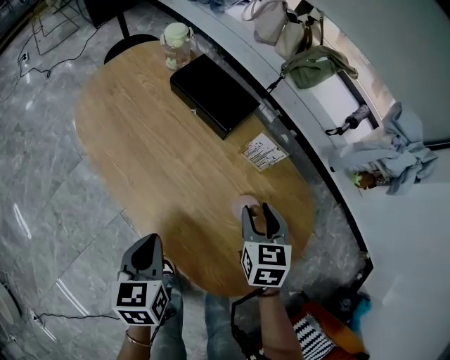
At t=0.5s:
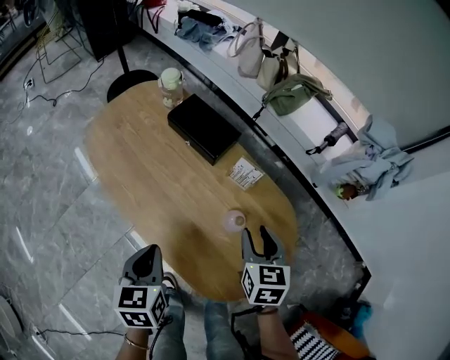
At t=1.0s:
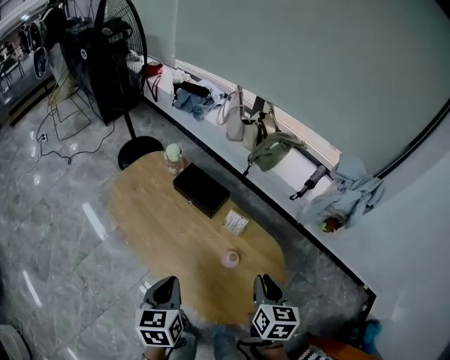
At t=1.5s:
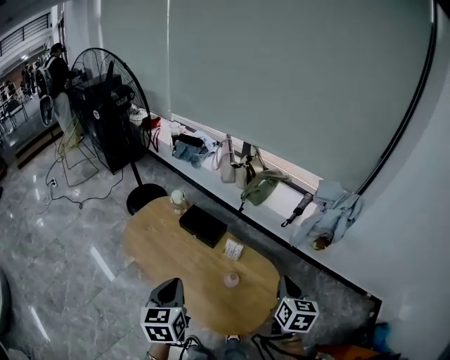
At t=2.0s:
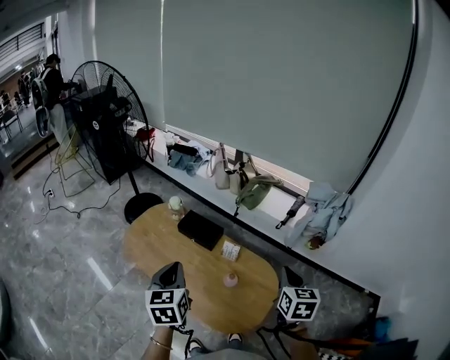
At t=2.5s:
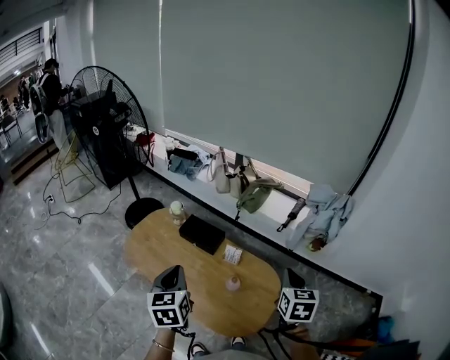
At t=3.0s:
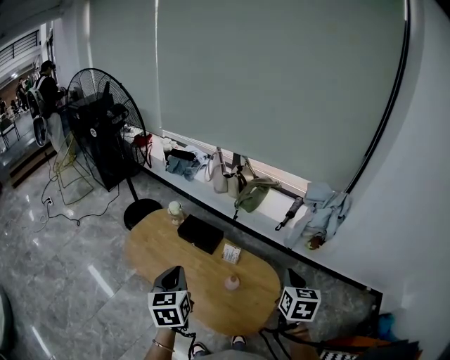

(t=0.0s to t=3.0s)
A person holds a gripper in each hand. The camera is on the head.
t=0.0s - t=1.5s: Both grippers move upward, some 35 cm. The right gripper changes its angle by some 30 degrees, and closes, while the left gripper changes its angle by approximately 20 degrees.
t=1.5s - t=3.0s: There are only small adjustments of the grippers.

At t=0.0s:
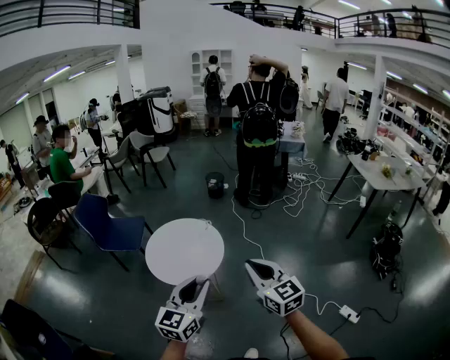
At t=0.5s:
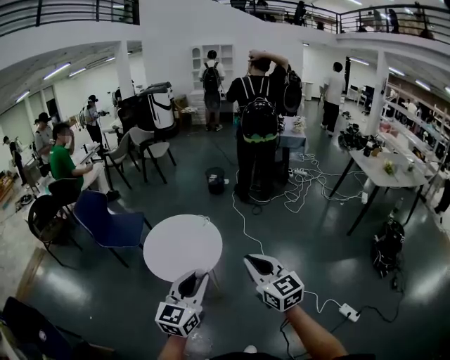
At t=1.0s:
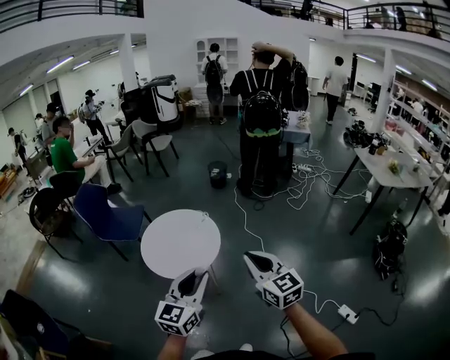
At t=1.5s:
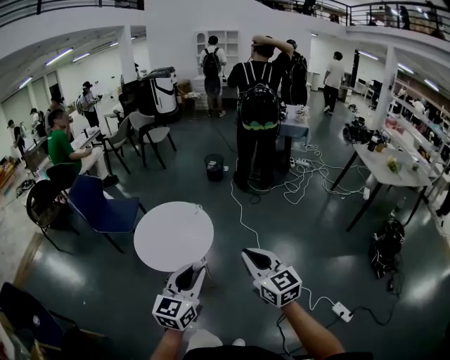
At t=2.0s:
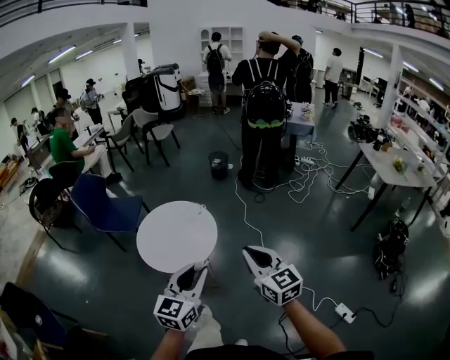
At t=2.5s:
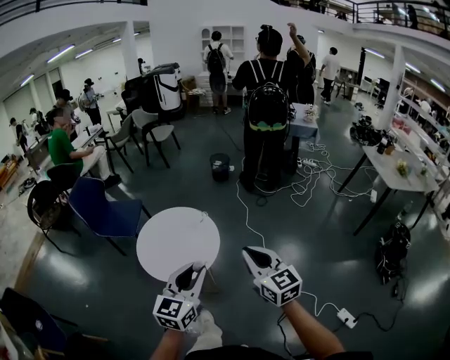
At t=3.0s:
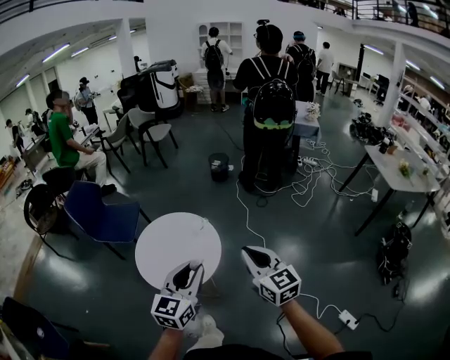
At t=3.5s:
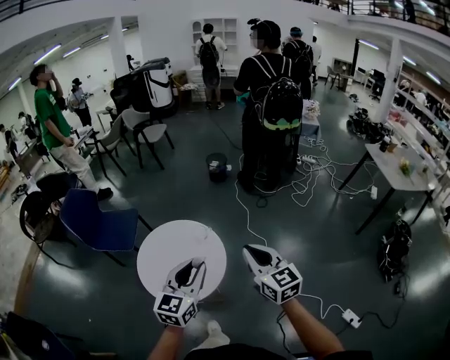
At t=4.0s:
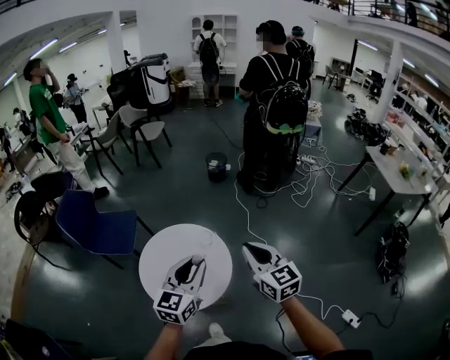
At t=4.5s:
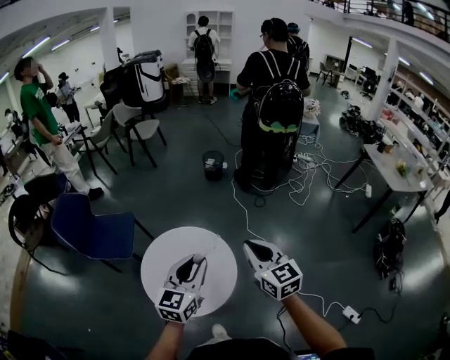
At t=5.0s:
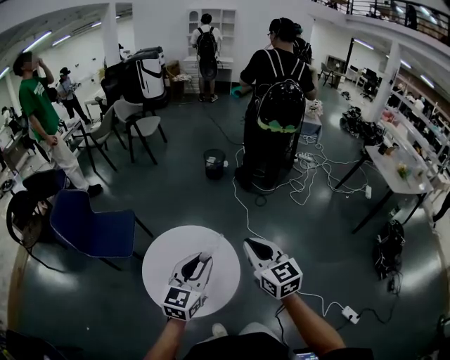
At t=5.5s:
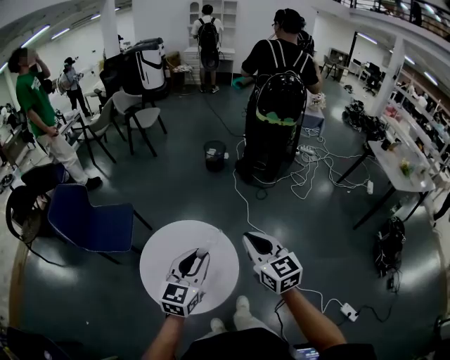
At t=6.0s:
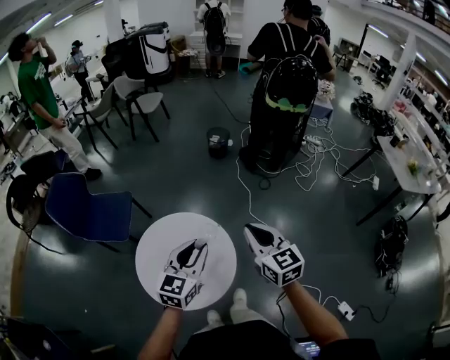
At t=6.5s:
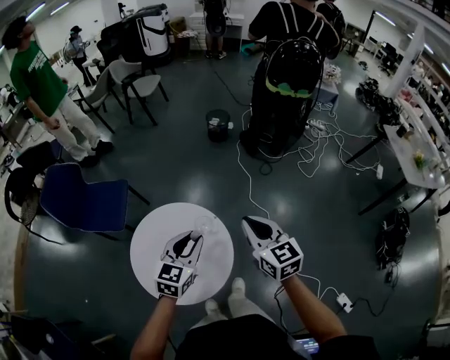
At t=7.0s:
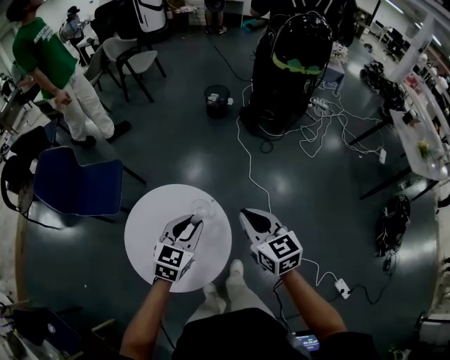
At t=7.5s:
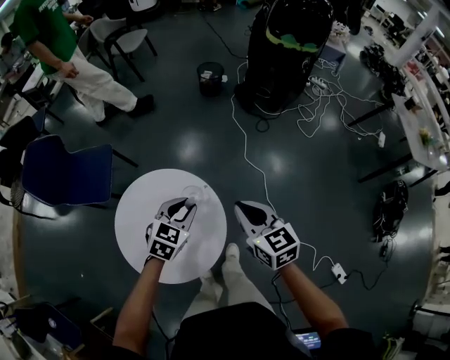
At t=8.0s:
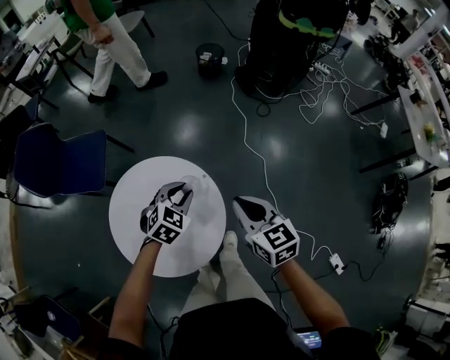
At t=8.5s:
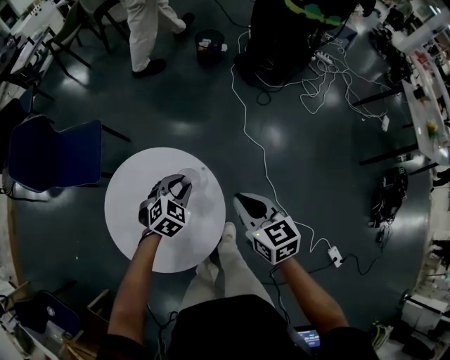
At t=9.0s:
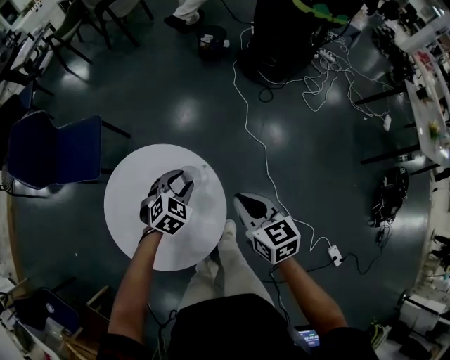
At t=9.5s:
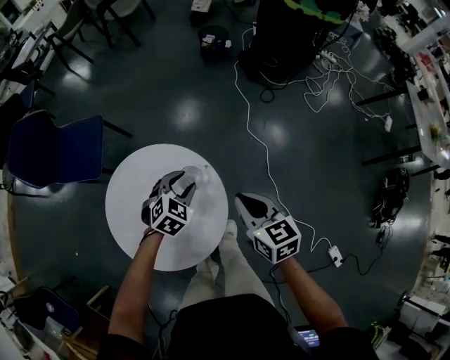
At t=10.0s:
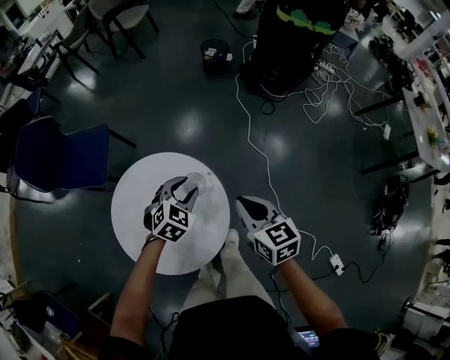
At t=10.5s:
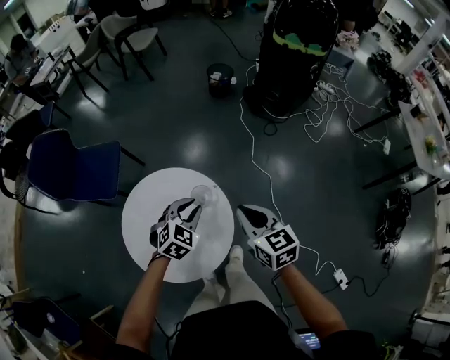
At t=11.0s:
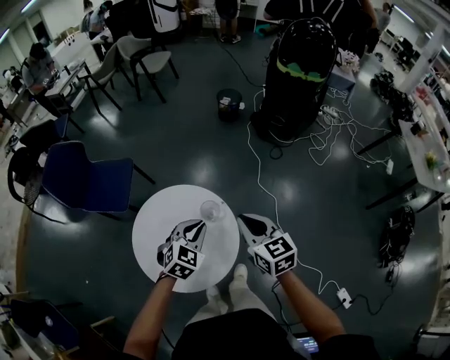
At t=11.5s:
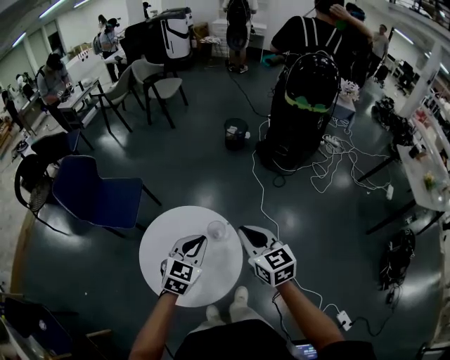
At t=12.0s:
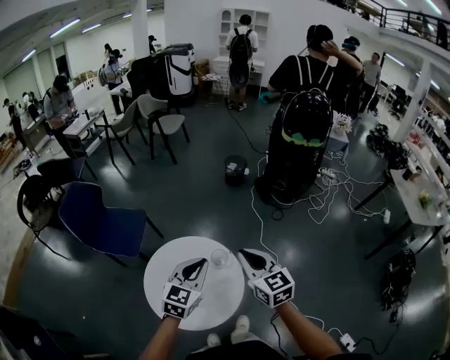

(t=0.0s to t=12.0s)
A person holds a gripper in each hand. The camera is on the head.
t=0.0s - t=2.0s: The grippers both shift to the right and forward by some 10 cm.
t=2.0s - t=4.0s: The two grippers go approximately 35 cm forward.
t=4.0s - t=6.0s: The left gripper shifts some 15 cm forward and downward; the right gripper shifts roughly 15 cm forward.
t=6.0s - t=8.0s: Both grippers travel together downward and forward, roughly 25 cm. The left gripper angles its fingers downward, by approximately 40 degrees.
t=8.0s - t=10.0s: The grippers make only small movements.
t=10.0s - t=12.0s: The left gripper travels upward and backward by about 30 cm, changes its angle by roughly 30 degrees, and closes its fingers; the right gripper moves upward and to the left, roughly 25 cm, and swivels some 20 degrees.

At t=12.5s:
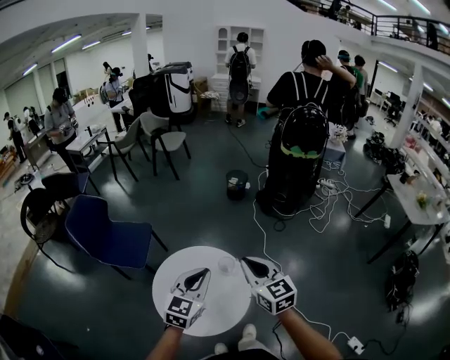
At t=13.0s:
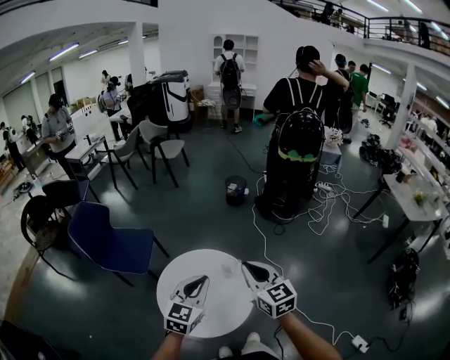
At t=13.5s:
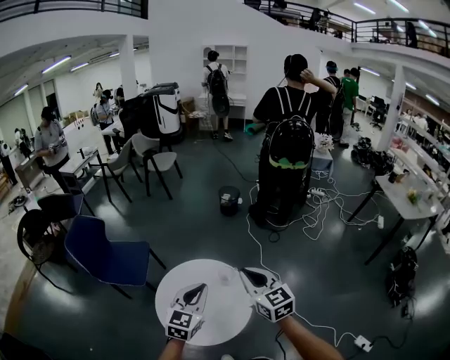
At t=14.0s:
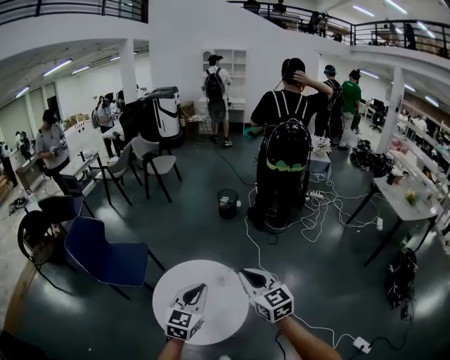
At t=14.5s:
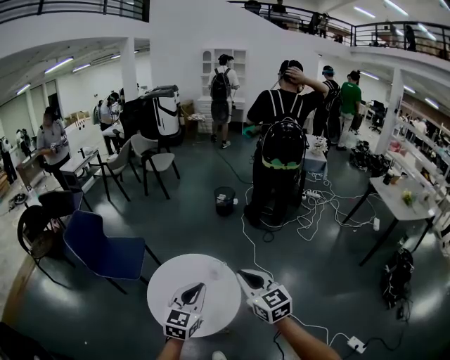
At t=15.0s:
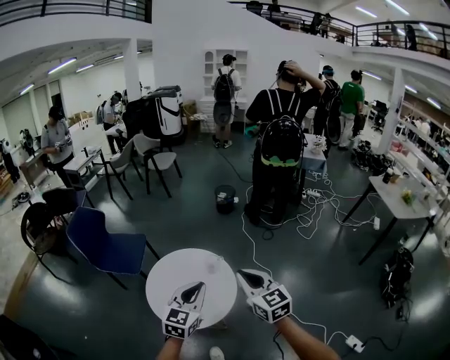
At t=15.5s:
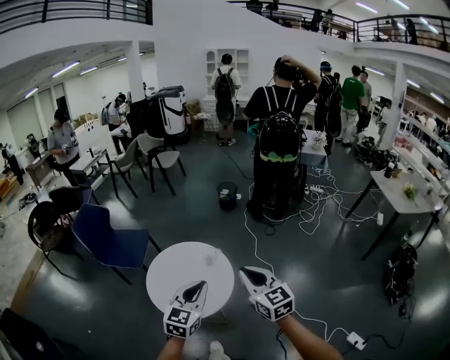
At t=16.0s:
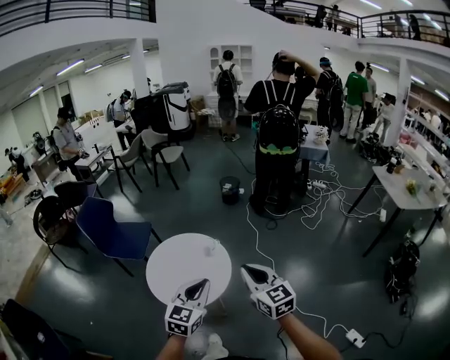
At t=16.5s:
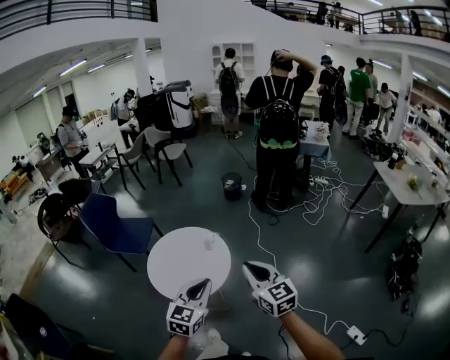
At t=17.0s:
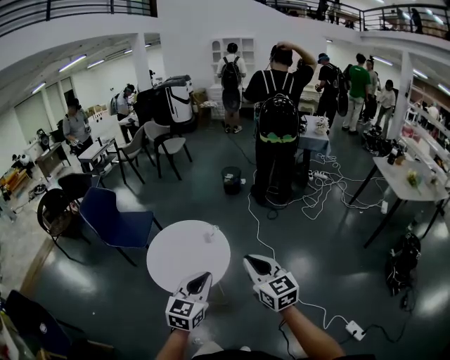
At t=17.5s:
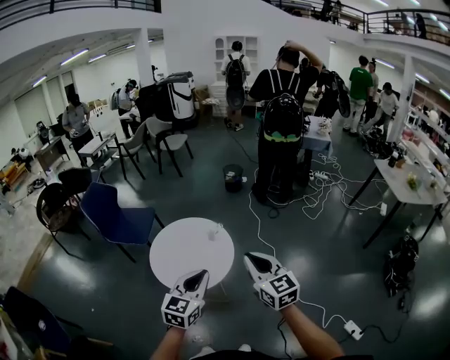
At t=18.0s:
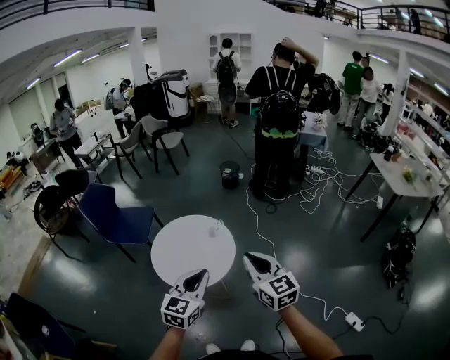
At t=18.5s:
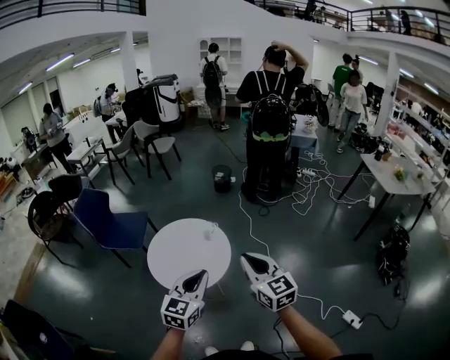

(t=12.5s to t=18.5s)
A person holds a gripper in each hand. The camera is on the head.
t=12.5s - t=14.5s: The grippers both shift backward by approximately 10 cm.
t=14.5s - t=16.5s: Both grippers travel together backward and to the right, approximately 25 cm.
t=16.5s - t=18.5s: Both grippers move to the left, roughly 5 cm.

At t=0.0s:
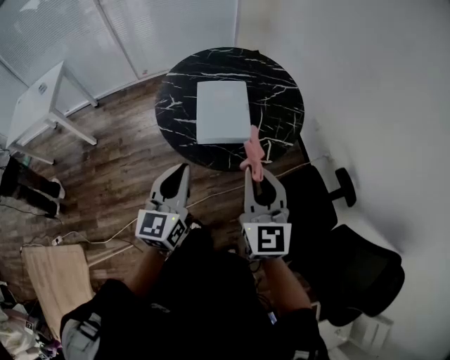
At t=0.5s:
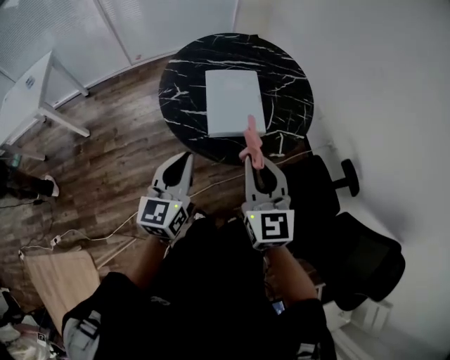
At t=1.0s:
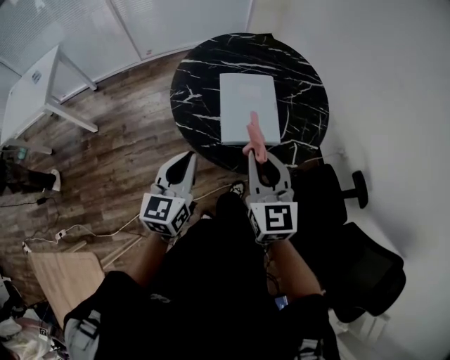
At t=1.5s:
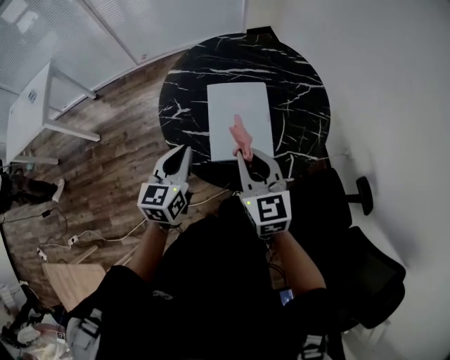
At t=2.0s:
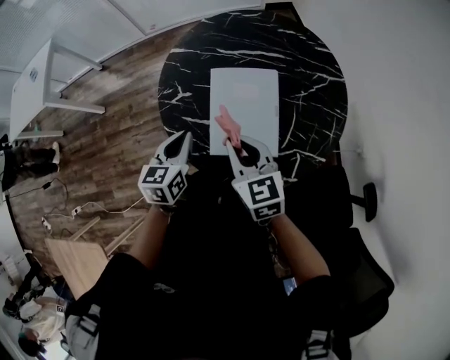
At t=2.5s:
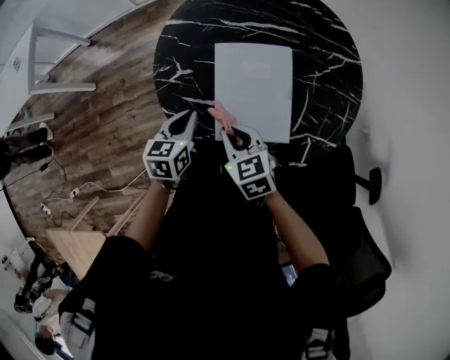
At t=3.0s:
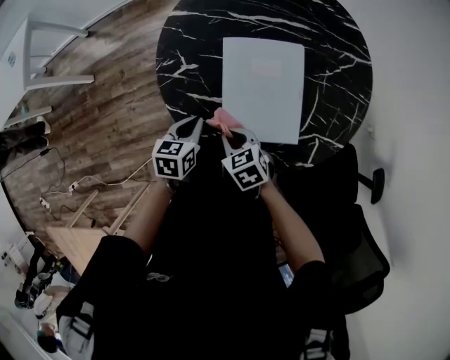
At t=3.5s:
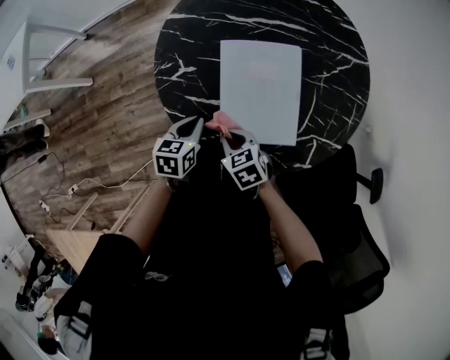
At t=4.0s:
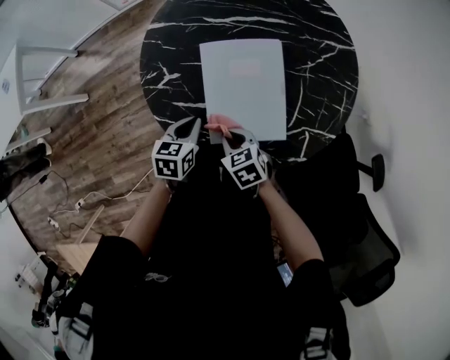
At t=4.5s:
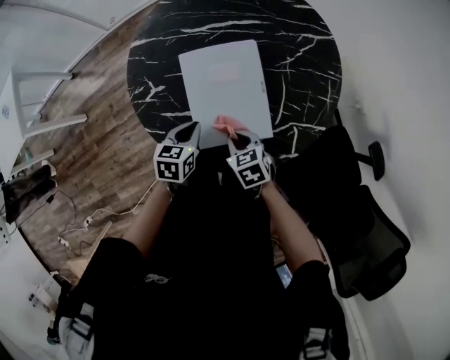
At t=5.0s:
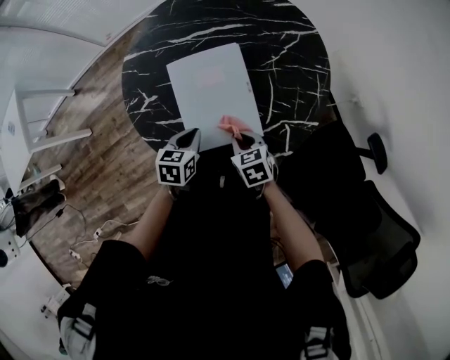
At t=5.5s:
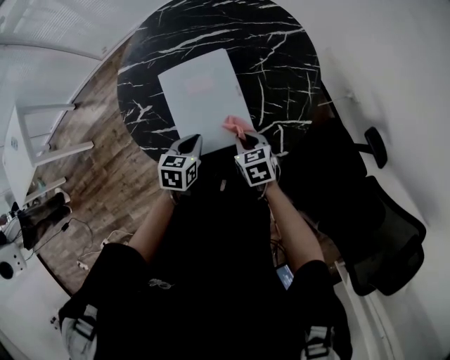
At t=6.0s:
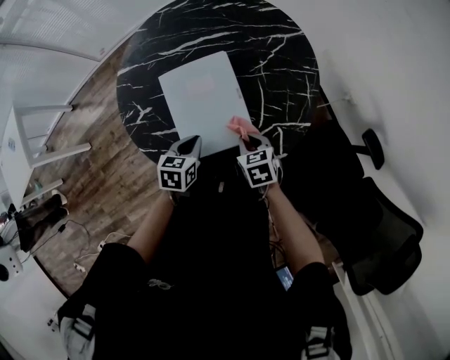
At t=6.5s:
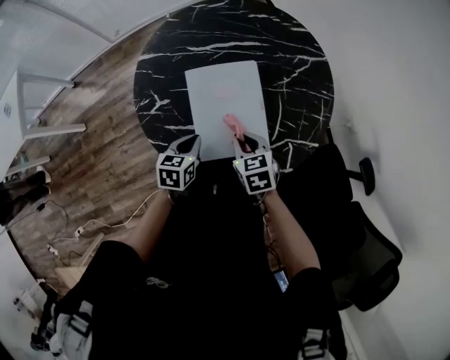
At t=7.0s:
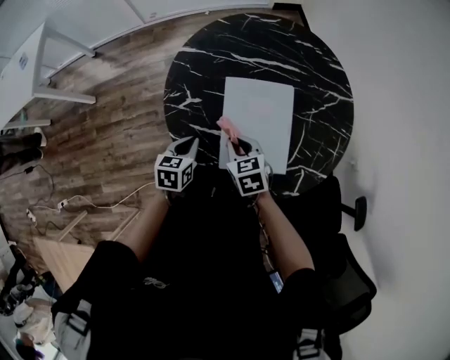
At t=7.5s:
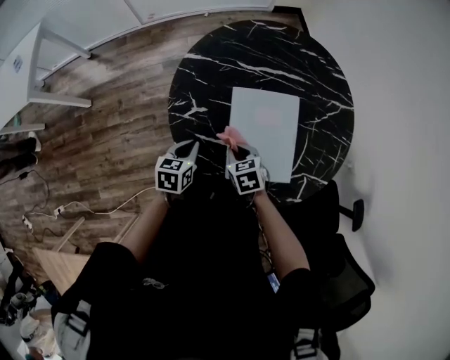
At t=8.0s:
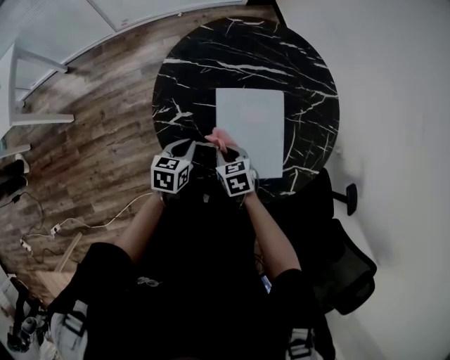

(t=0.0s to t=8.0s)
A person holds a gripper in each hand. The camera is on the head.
t=0.0s - t=2.0s: The grippers both shift forward and downward by some 30 cm. The left gripper swivels some 30 degrees, while the right gripper changes its angle by approximately 30 degrees.
t=2.0s - t=4.0s: Both grippers travel together downward, some 15 cm. The left gripper turns by approximately 20 degrees; the right gripper swivels roughly 30 degrees.
t=4.0s - t=6.0s: The right gripper heads to the right, covering some 15 cm, and changes its angle by approximately 20 degrees. The left gripper moves to the right, some 10 cm.
t=6.0s - t=8.0s: Both grippers move to the left, some 20 cm.
